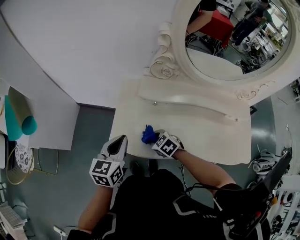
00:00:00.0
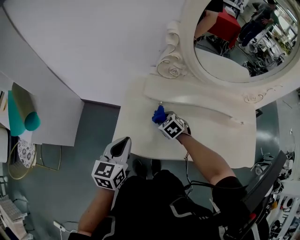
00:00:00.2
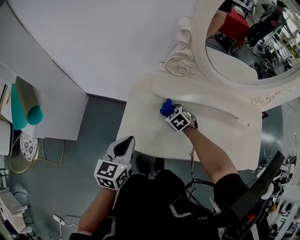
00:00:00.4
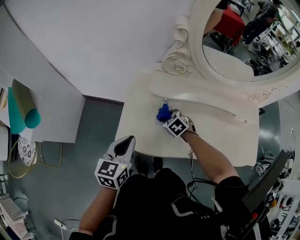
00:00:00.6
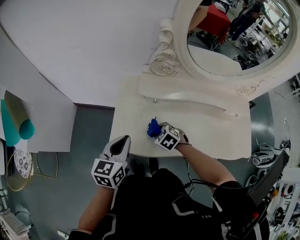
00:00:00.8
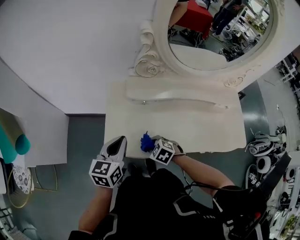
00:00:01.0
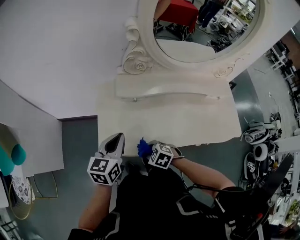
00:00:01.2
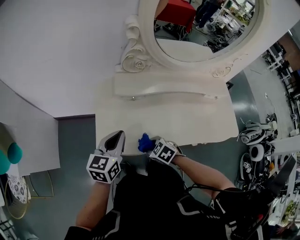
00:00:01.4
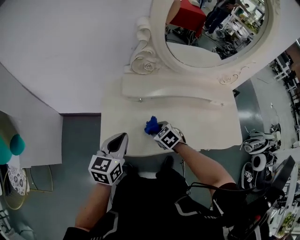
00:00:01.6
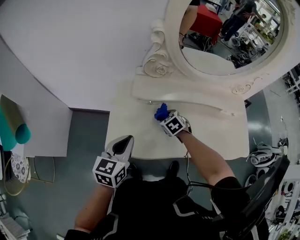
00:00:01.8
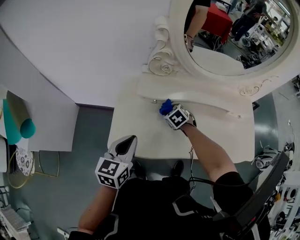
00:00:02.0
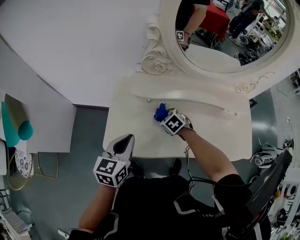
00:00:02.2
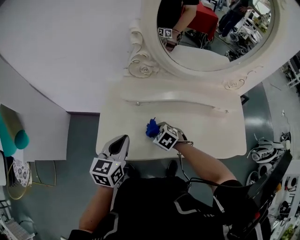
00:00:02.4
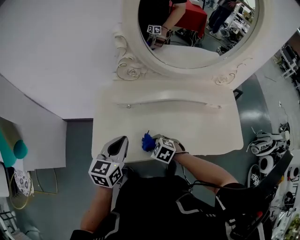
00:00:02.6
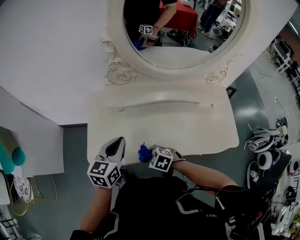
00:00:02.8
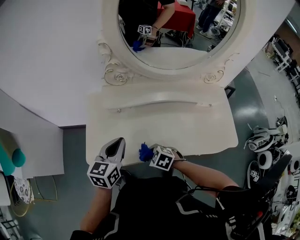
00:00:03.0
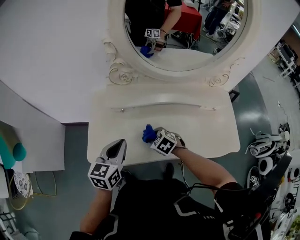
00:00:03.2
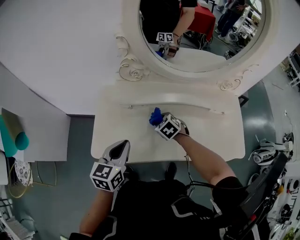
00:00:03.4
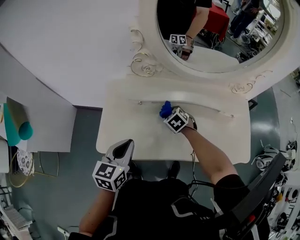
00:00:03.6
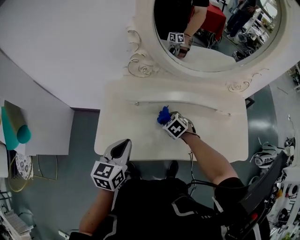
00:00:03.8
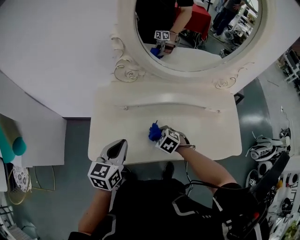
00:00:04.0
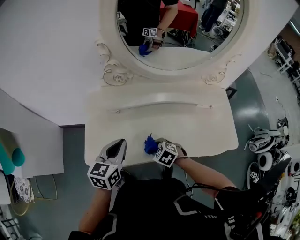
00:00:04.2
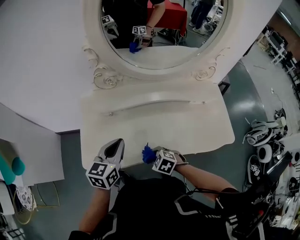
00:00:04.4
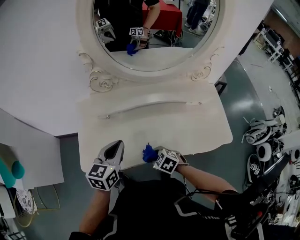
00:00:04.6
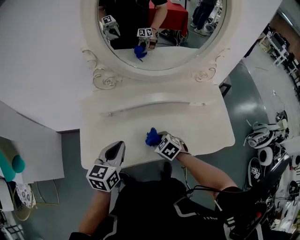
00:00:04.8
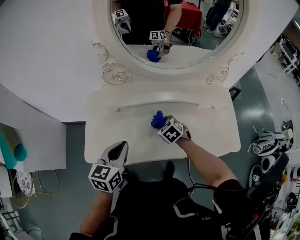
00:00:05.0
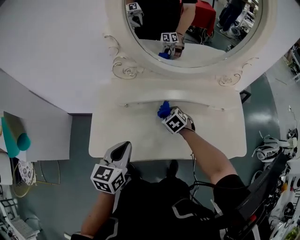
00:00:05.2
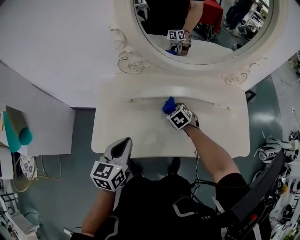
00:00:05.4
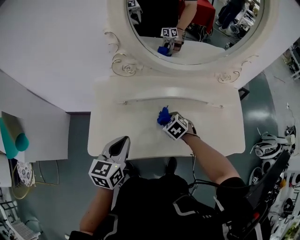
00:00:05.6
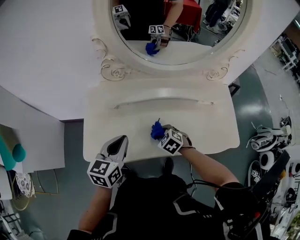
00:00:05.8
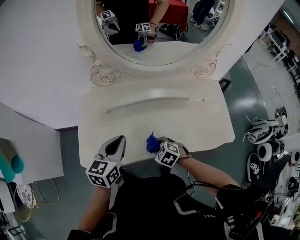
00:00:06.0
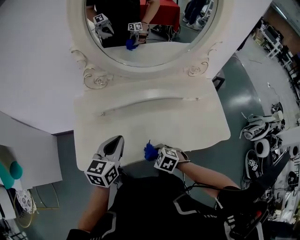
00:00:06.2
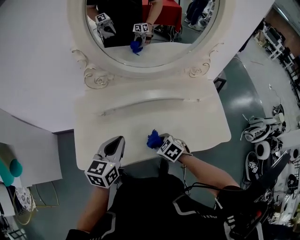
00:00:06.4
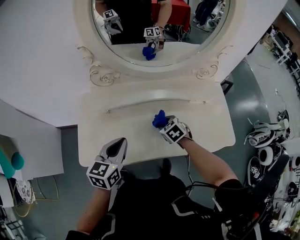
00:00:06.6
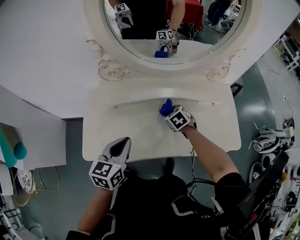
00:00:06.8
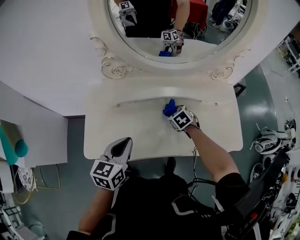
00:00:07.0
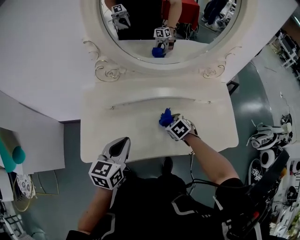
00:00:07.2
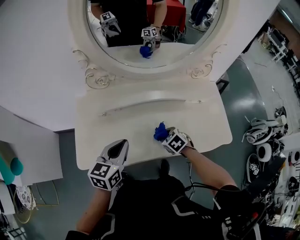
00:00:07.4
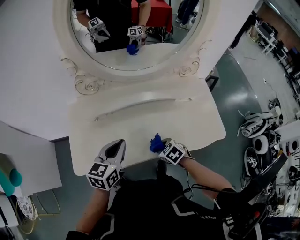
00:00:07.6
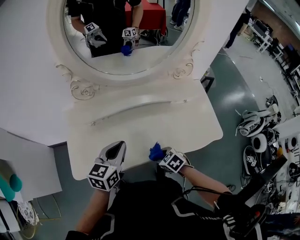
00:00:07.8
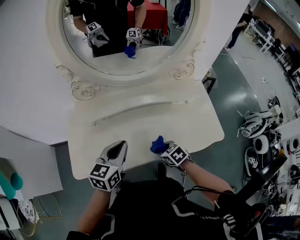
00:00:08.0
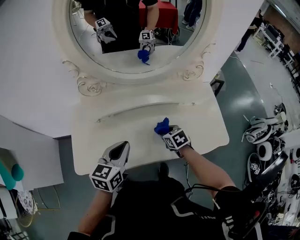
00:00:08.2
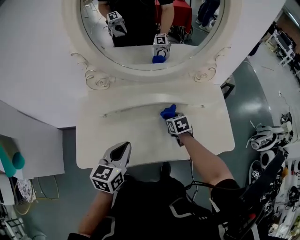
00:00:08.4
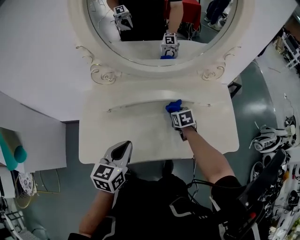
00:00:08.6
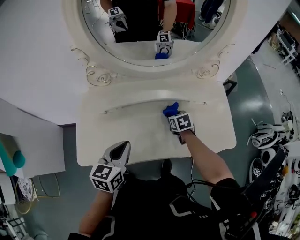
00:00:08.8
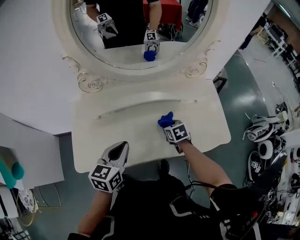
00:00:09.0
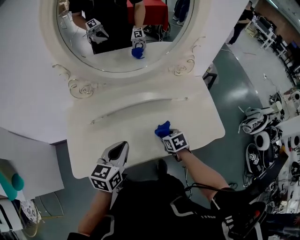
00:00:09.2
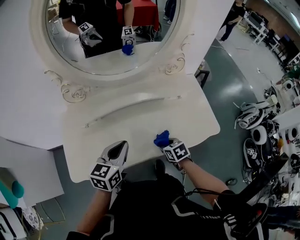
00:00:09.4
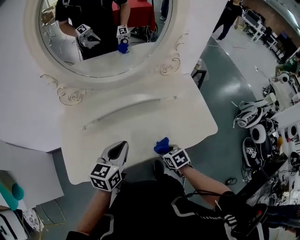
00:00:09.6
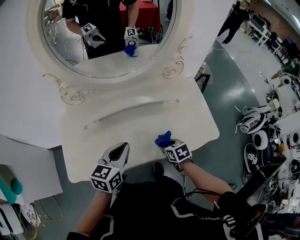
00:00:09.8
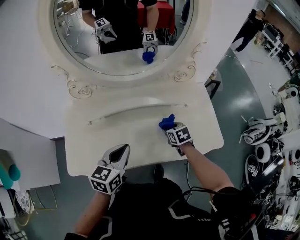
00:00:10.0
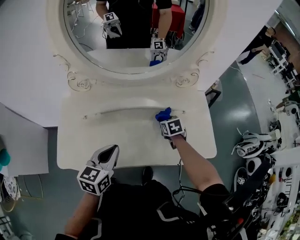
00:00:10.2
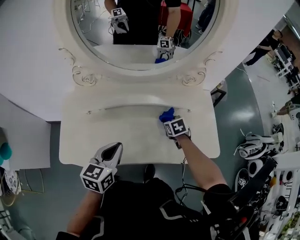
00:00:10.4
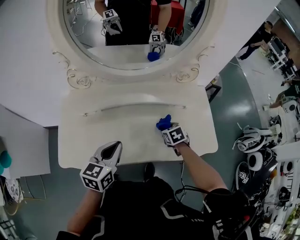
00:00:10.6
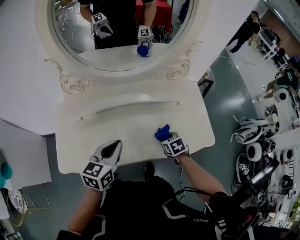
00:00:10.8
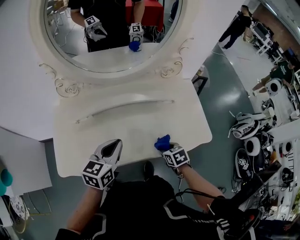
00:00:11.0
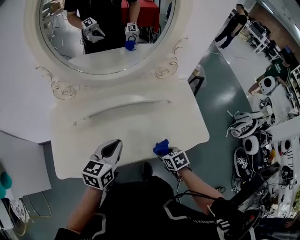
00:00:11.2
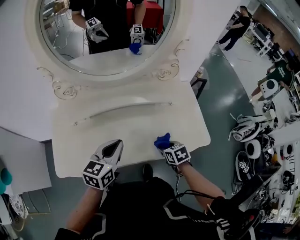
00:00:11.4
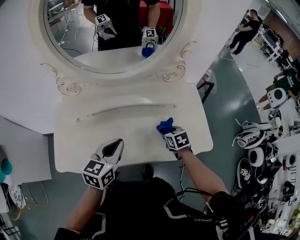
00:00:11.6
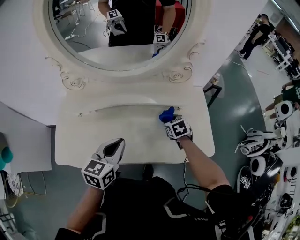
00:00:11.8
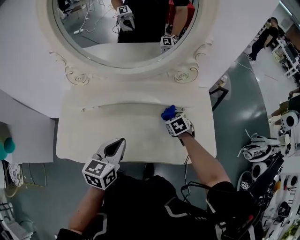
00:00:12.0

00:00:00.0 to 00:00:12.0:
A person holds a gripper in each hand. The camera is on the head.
00:00:00.0 to 00:00:01.6: The right gripper moves forward and backward over approximately 20 cm, changing direction 2 times.
00:00:01.6 to 00:00:03.0: The right gripper goes roughly 10 cm backward; the left gripper is displaced to the right by some 10 cm.
00:00:03.0 to 00:00:04.4: The right gripper goes forward and returns, some 20 cm each way.
00:00:04.4 to 00:00:06.0: The right gripper reaches approximately 20 cm forward, then returns.
00:00:06.0 to 00:00:07.6: The right gripper goes forward and backward, some 20 cm each way, reversing 2 times, and turns by some 20 degrees. The left gripper travels to the right by approximately 5 cm.
00:00:07.6 to 00:00:09.0: The right gripper swings forward and backward, roughly 25 cm each way, with 2 reversals, and swivels approximately 30 degrees.
00:00:09.0 to 00:00:10.4: The right gripper is displaced to the right by roughly 5 cm, and moves approximately 15 cm backward and comes back.
00:00:10.4 to 00:00:12.0: The two grippers go roughly 5 cm to the right. The right gripper travels backward and back again, some 20 cm each way.

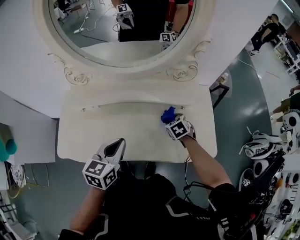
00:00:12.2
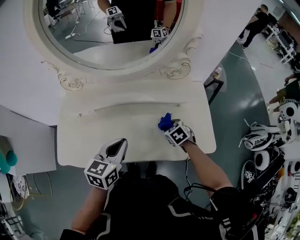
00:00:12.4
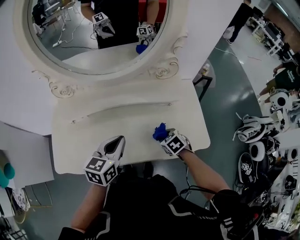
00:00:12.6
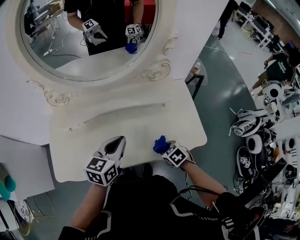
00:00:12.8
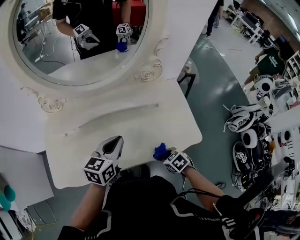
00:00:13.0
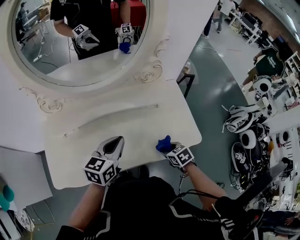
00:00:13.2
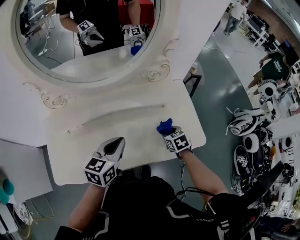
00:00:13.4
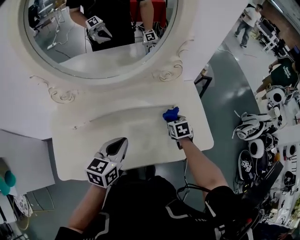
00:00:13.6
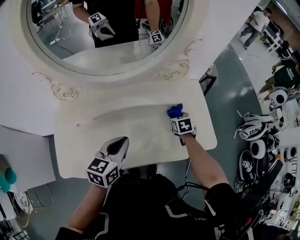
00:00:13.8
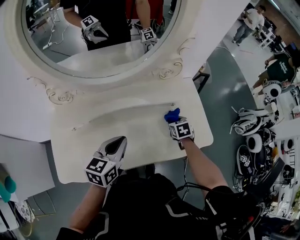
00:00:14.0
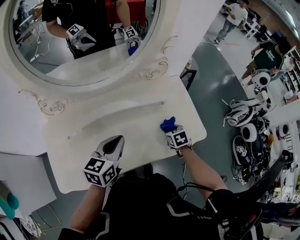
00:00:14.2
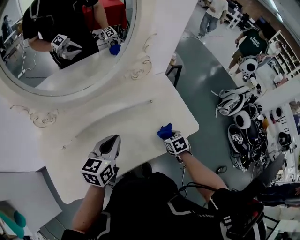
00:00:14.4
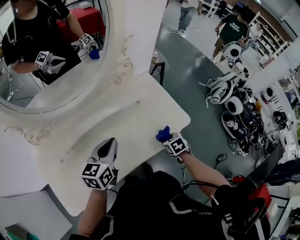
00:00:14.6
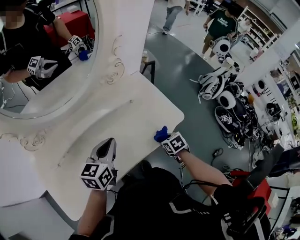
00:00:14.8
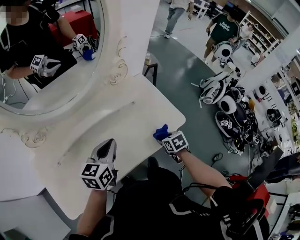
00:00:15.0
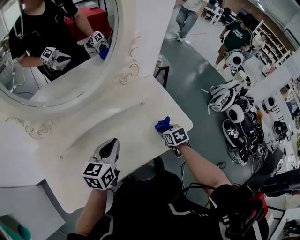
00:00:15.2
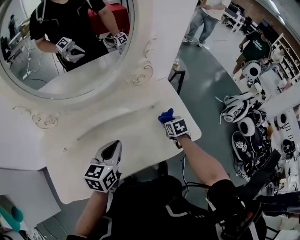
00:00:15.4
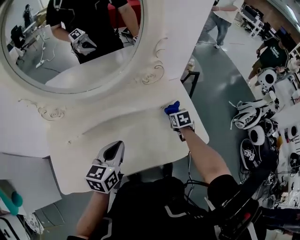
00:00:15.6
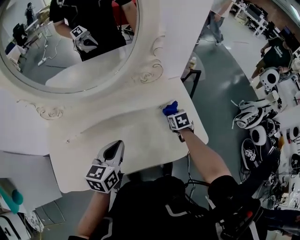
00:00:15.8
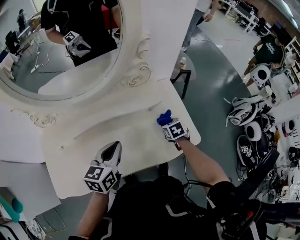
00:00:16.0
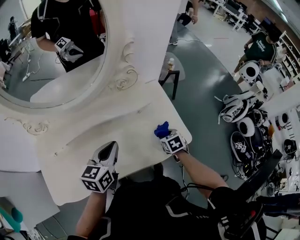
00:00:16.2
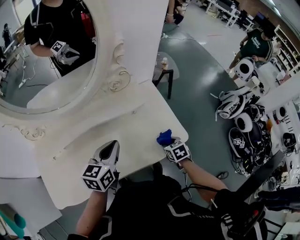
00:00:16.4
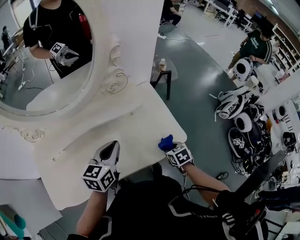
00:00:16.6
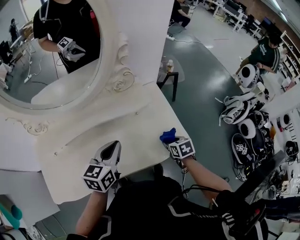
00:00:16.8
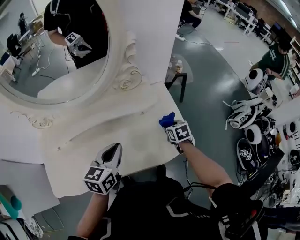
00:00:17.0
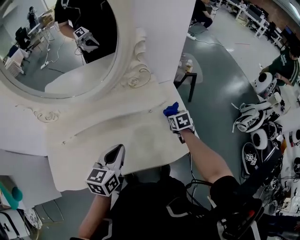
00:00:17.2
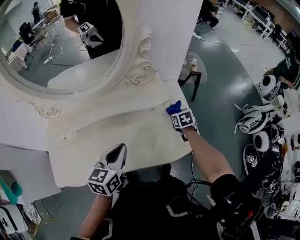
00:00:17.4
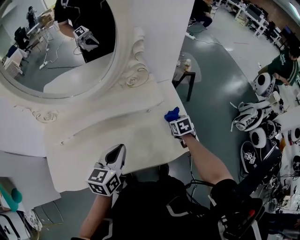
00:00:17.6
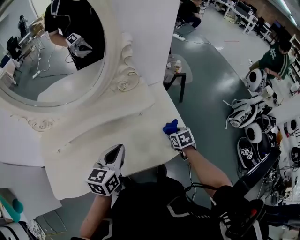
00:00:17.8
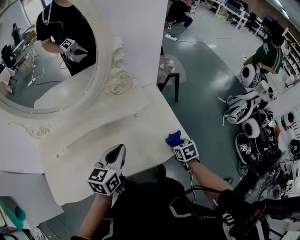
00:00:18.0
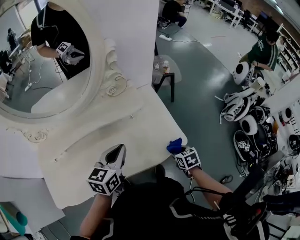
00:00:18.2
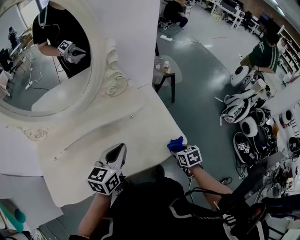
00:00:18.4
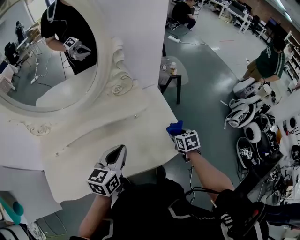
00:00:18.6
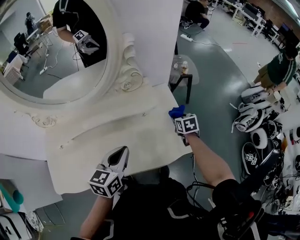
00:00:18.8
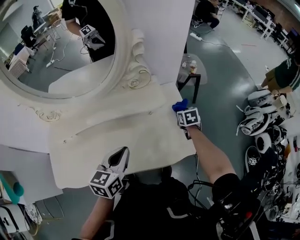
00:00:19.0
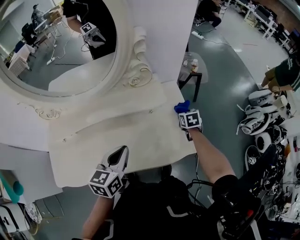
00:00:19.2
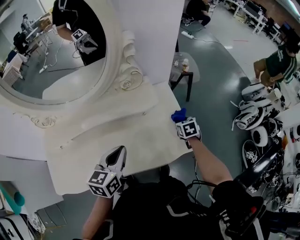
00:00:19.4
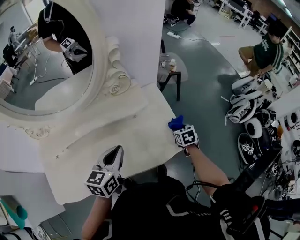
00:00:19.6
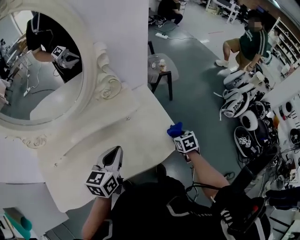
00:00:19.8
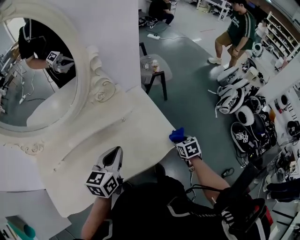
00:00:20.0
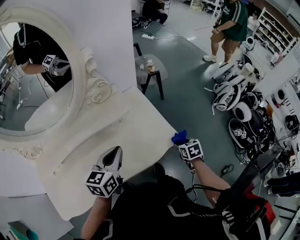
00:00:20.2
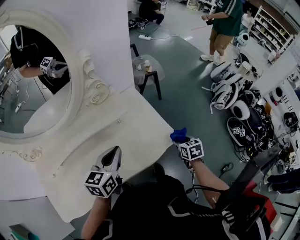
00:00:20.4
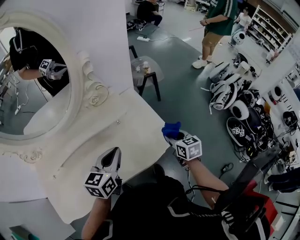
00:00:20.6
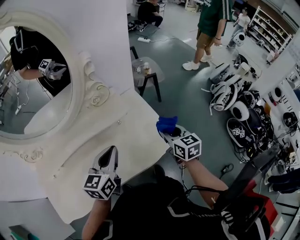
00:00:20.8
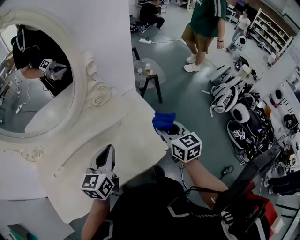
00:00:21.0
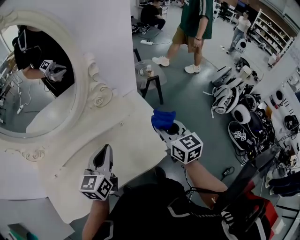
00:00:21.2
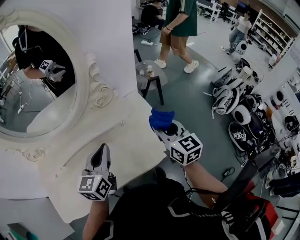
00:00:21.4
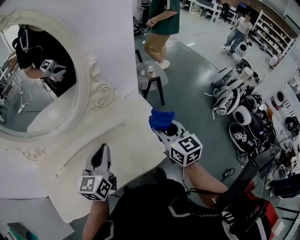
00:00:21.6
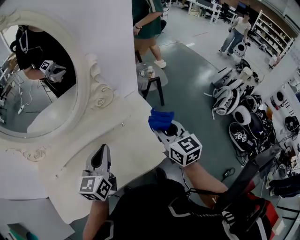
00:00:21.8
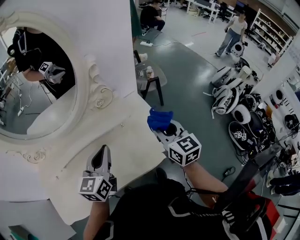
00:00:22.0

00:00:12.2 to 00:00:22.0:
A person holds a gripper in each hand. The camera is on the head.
00:00:12.2 to 00:00:13.6: The right gripper travels to the right by some 5 cm, reaches some 20 cm backward, then returns, and turns by some 30 degrees.
00:00:13.6 to 00:00:15.0: The right gripper is displaced backward and to the right by roughly 20 cm.
00:00:15.0 to 00:00:16.4: Both grippers move to the right, roughly 5 cm. The right gripper reaches approximately 20 cm forward, then returns.
00:00:16.4 to 00:00:17.8: The right gripper is displaced forward by some 10 cm.
00:00:17.8 to 00:00:19.2: The right gripper shifts some 10 cm forward.
00:00:19.2 to 00:00:20.6: The left gripper heads to the right, covering some 5 cm. The right gripper goes roughly 20 cm backward, upward and to the right, and rotates about 20 degrees.
00:00:20.6 to 00:00:22.0: The right gripper heads upward and to the left, covering about 20 cm, and turns by roughly 30 degrees. The left gripper goes some 5 cm upward and to the left.

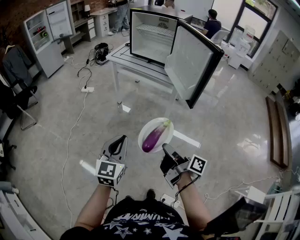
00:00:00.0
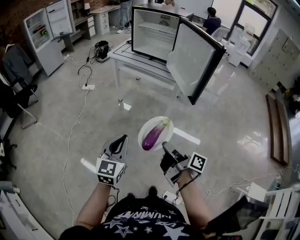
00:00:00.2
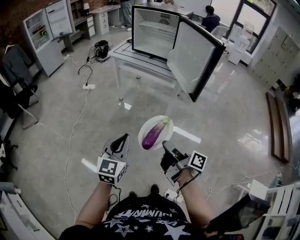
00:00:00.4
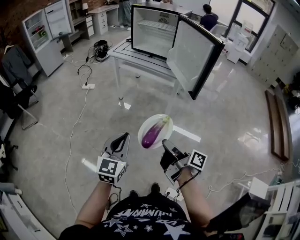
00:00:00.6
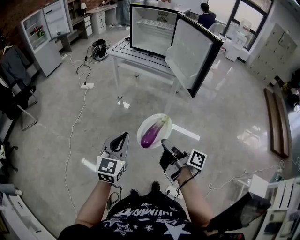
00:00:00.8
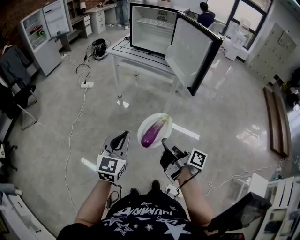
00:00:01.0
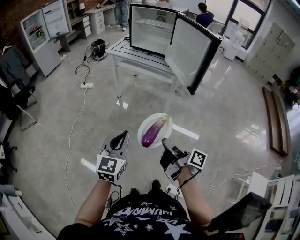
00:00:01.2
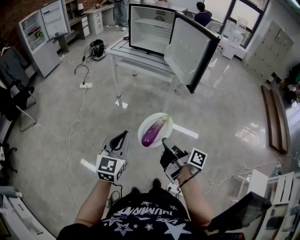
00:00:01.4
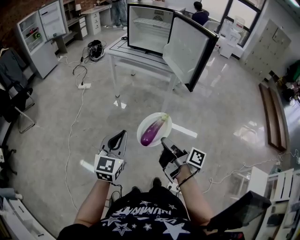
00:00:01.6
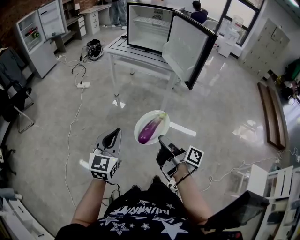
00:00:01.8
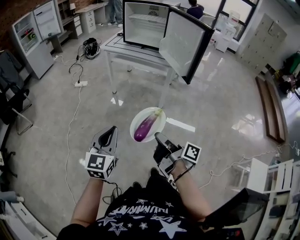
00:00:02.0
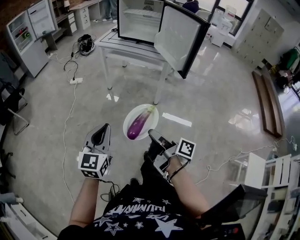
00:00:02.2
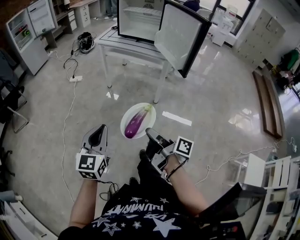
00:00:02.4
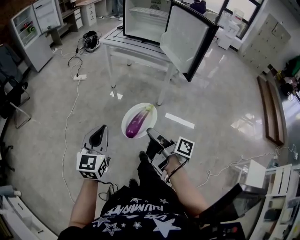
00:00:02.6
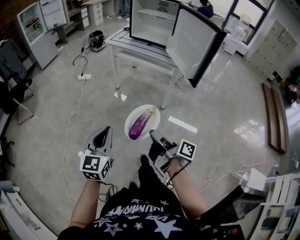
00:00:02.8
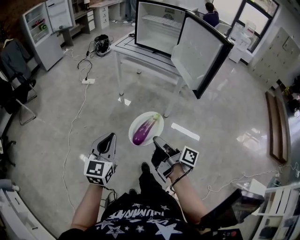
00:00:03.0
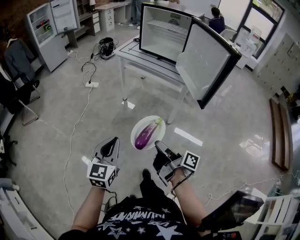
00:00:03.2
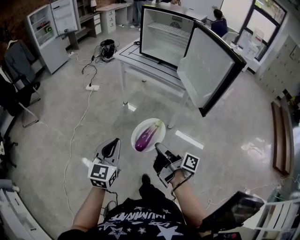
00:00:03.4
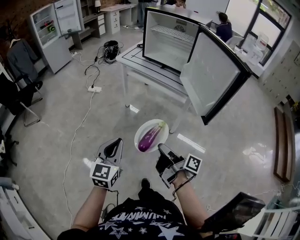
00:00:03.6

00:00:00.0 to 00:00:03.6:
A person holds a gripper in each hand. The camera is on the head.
00:00:00.0 to 00:00:01.8: The left gripper shifts by roughly 10 cm.
00:00:01.8 to 00:00:03.6: The left gripper moves about 20 cm.
